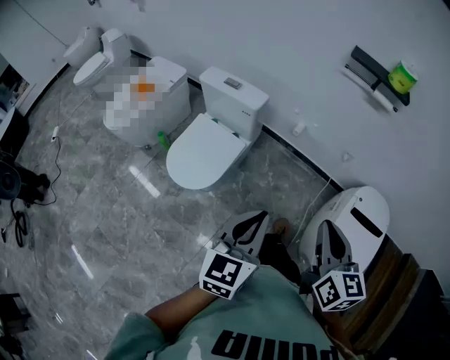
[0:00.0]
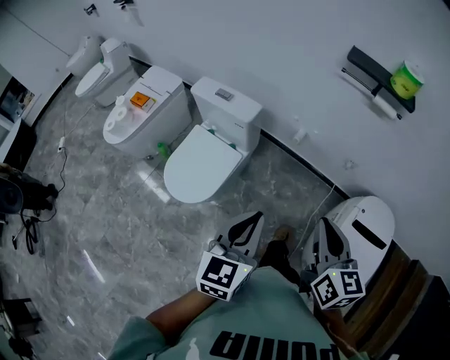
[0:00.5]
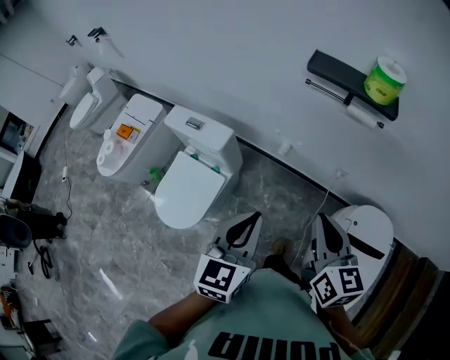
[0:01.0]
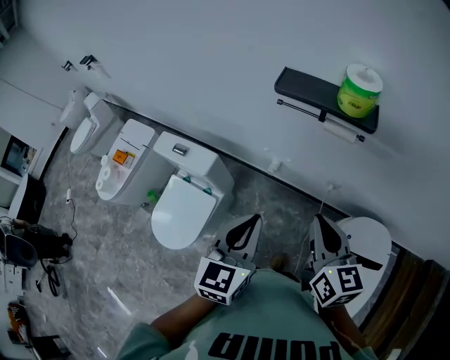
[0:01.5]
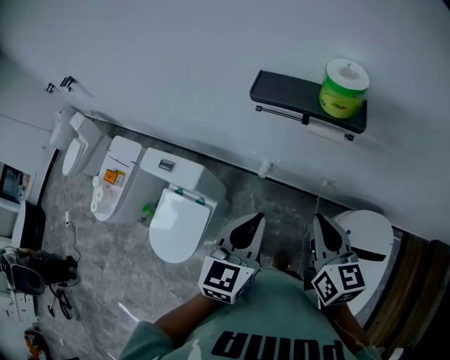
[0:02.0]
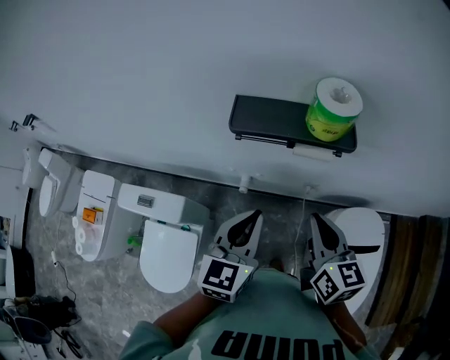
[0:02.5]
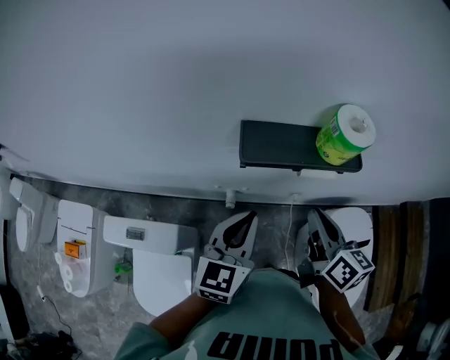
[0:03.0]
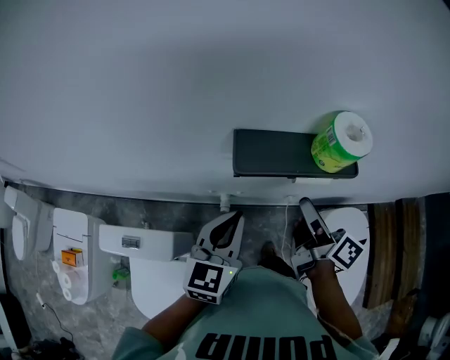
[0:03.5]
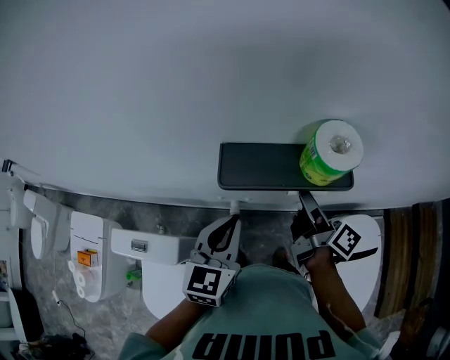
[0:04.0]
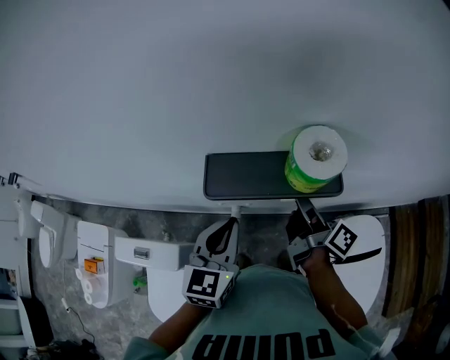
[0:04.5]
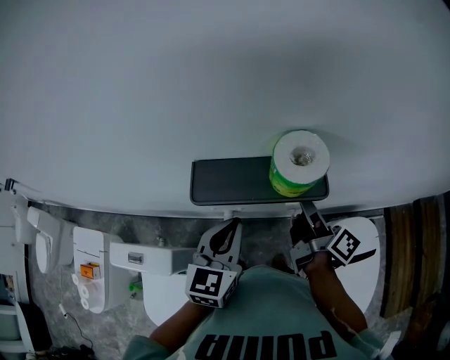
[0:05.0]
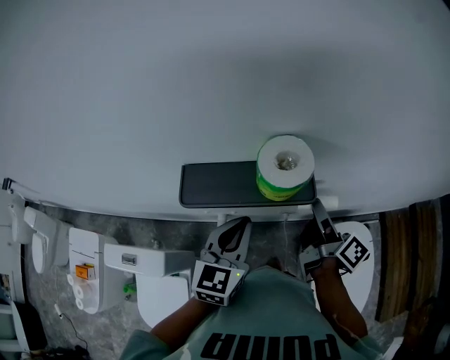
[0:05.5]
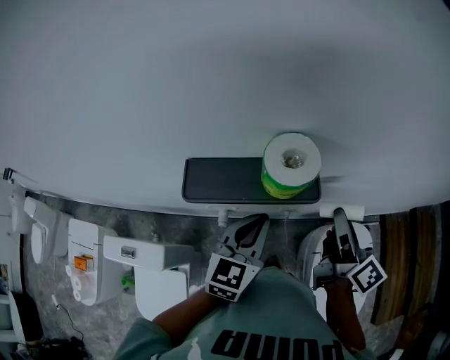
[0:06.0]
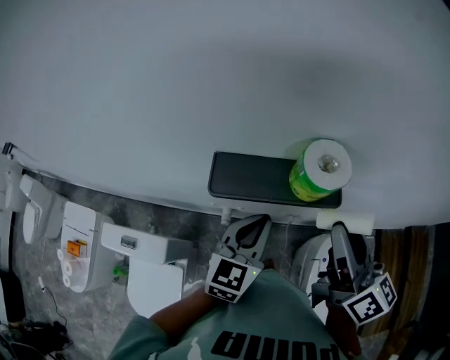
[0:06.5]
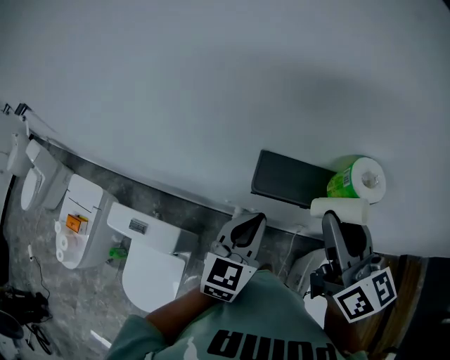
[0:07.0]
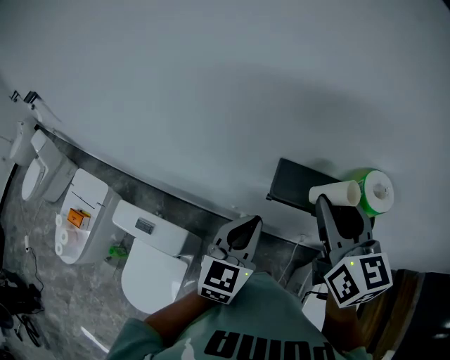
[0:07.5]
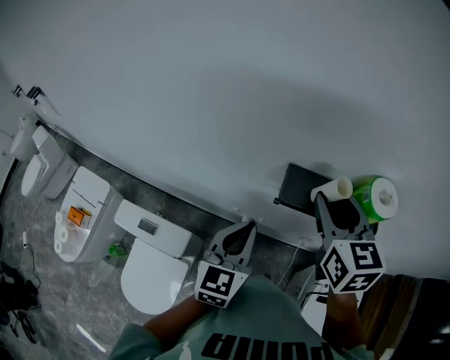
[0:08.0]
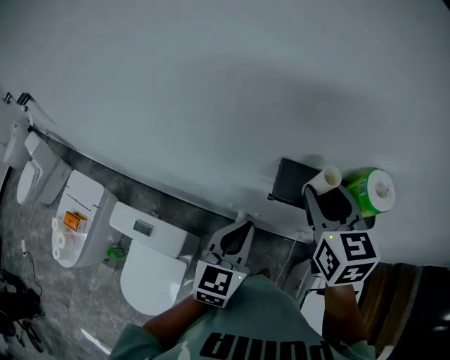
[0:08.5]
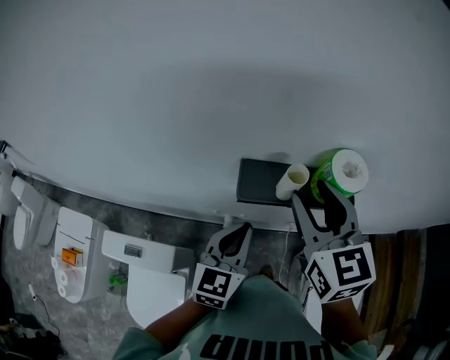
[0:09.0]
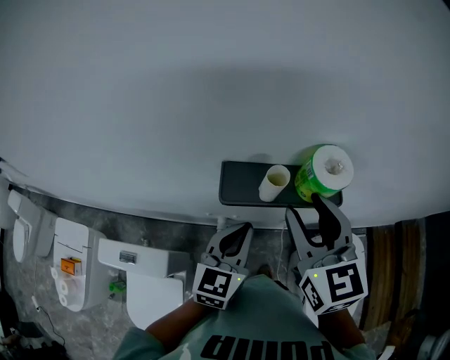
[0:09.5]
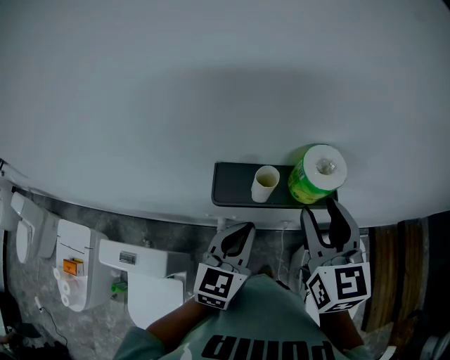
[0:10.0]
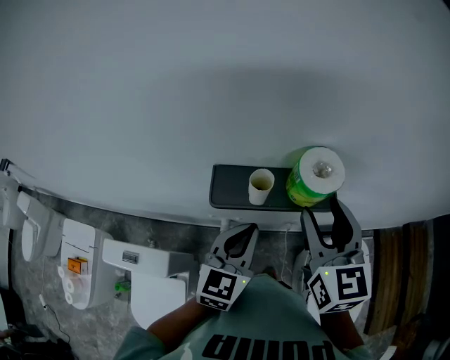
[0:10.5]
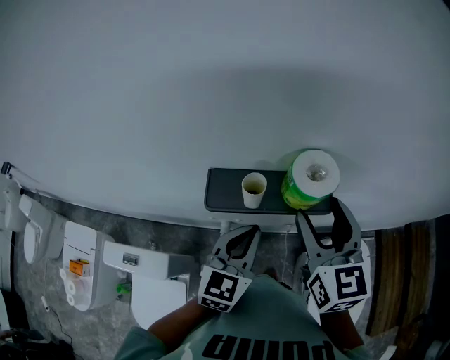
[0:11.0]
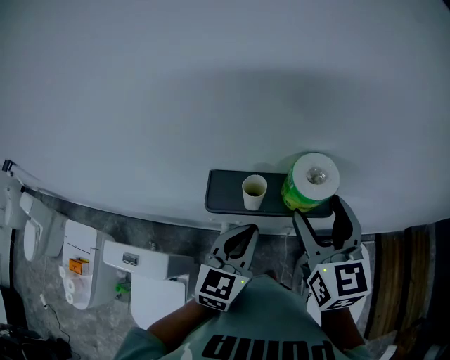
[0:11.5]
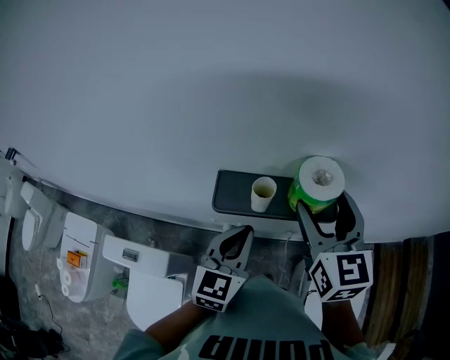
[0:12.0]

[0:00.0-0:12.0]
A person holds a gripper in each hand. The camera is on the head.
0:00.0 to 0:02.0: Both grippers travel together forward and to the right, about 35 cm.
0:02.0 to 0:04.0: The two grippers go approximately 20 cm forward. The right gripper twists roughly 50 degrees clockwise, seen from behind, and opens its fingers.
0:04.0 to 0:06.0: The left gripper moves to the right, approximately 15 cm, while the right gripper goes approximately 15 cm to the right and upward, and rotates about 20 degrees.
0:06.0 to 0:08.0: Both grippers travel together to the left, approximately 25 cm. The right gripper rotates around the line of its fingers by about 60 degrees, counterclockwise from behind, while the left gripper rotates approximately 20 degrees.
0:08.0 to 0:10.0: The two grippers go roughly 10 cm to the right.
0:10.0 to 0:12.0: The grippers stay close to where they were, moving slightly.

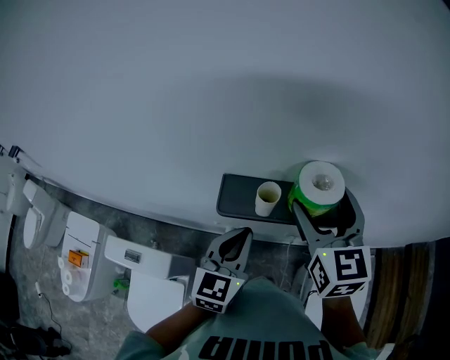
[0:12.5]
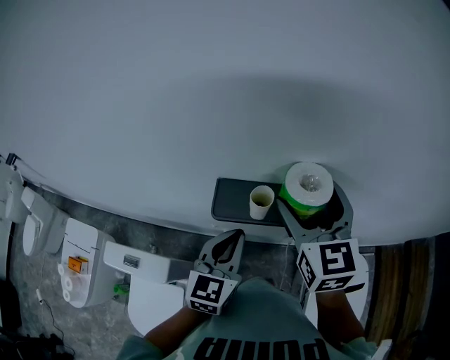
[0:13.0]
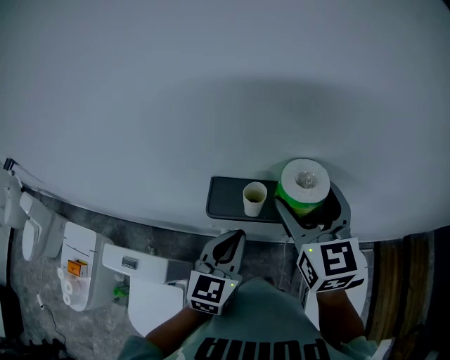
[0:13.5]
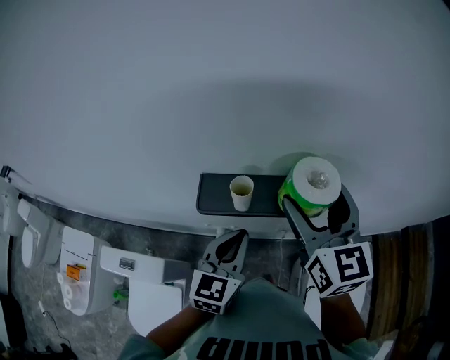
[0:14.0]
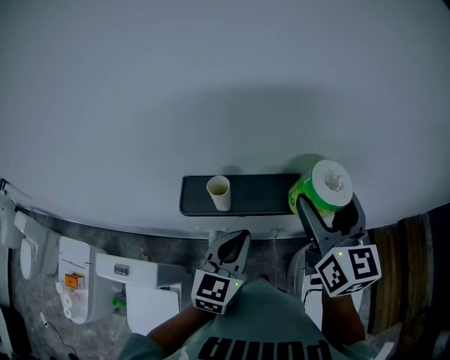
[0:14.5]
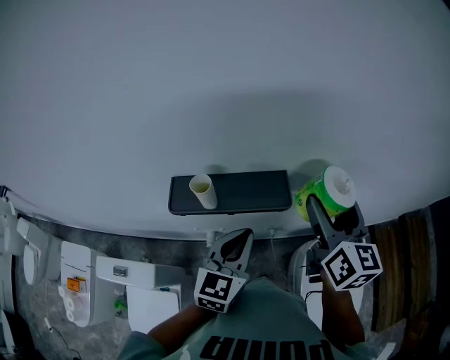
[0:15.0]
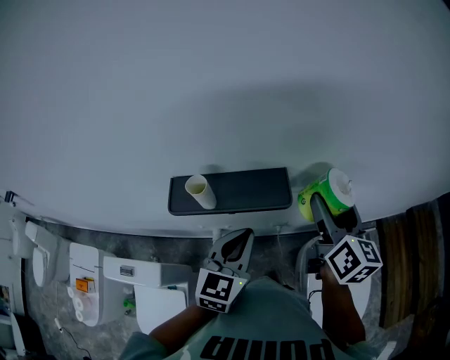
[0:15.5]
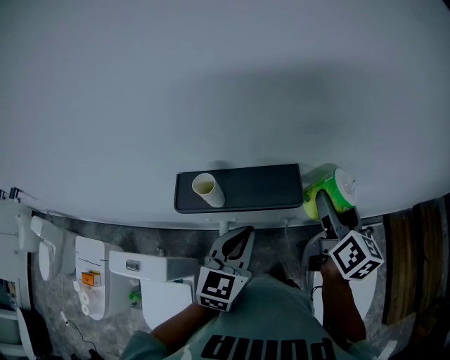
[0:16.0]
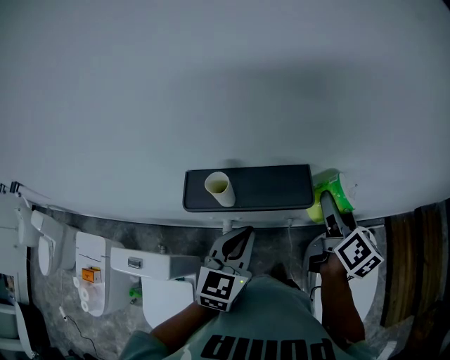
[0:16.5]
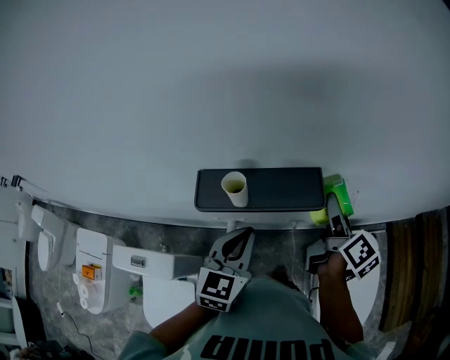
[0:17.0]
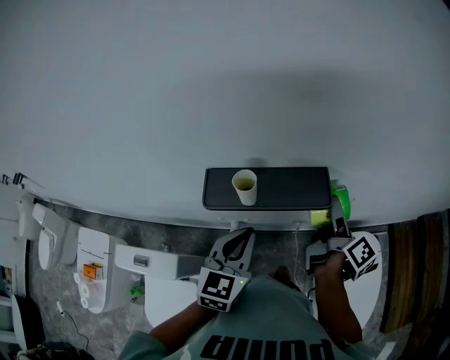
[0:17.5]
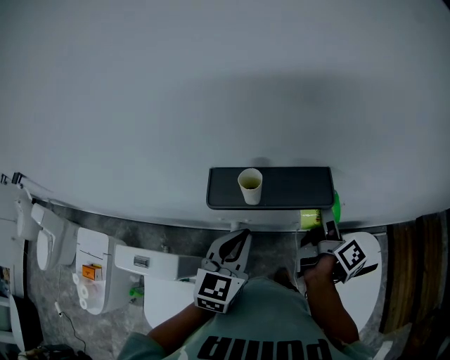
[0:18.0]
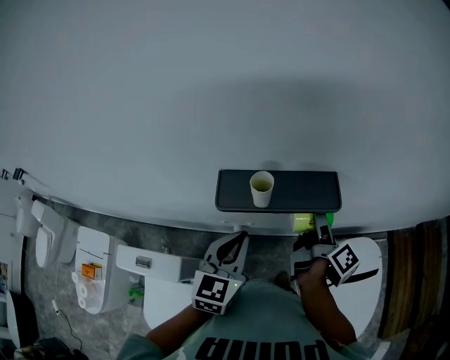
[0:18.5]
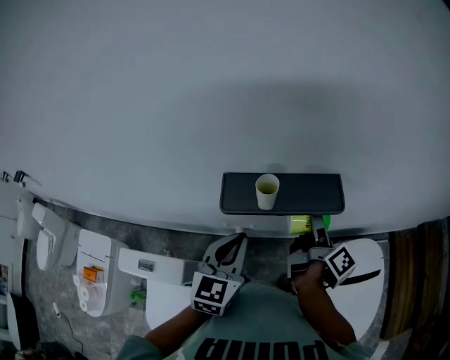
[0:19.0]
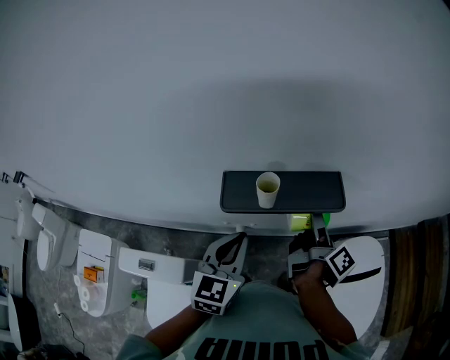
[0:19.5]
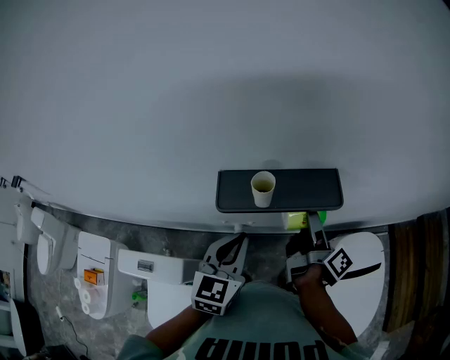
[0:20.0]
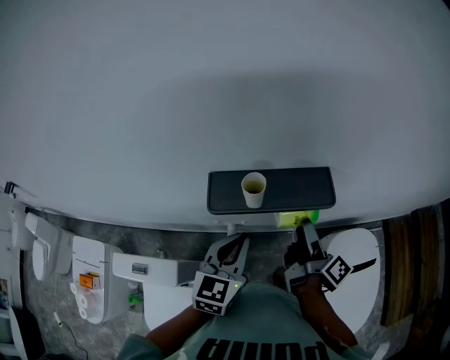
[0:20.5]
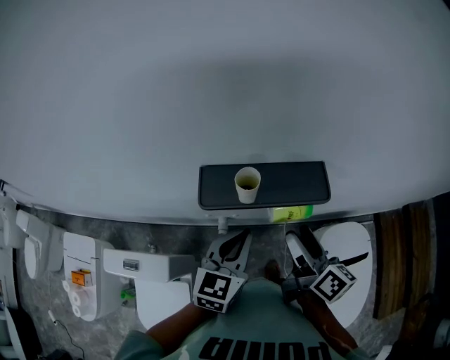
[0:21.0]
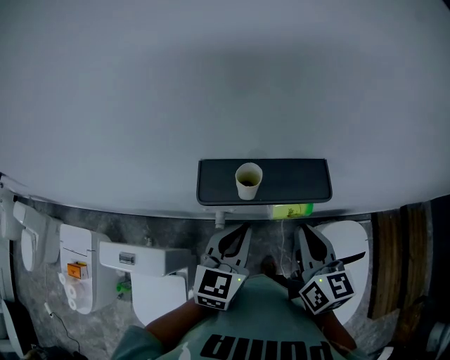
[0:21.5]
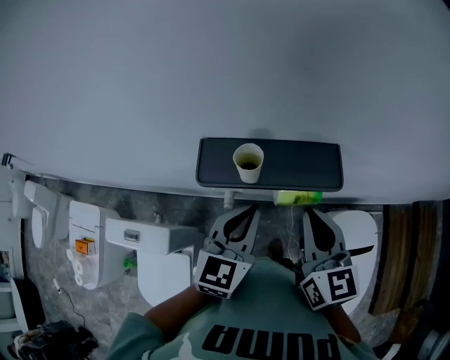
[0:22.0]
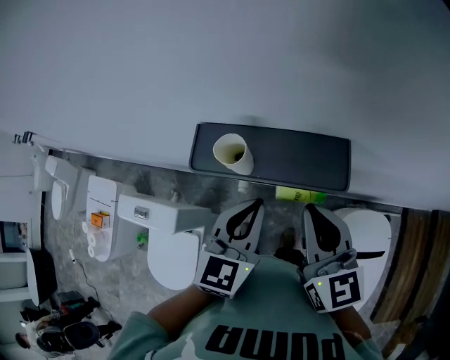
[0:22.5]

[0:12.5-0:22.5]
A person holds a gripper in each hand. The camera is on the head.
0:12.5 to 0:14.5: Both grippers move to the right, about 10 cm.
0:14.5 to 0:16.5: The right gripper goes approximately 15 cm downward and to the right, and swivels some 40 degrees.
0:16.5 to 0:18.5: The left gripper shifts about 10 cm to the left. The right gripper is displaced to the left and downward by about 10 cm, and swivels about 40 degrees.
0:18.5 to 0:20.5: There are only small adjustments of the grippers.
0:20.5 to 0:22.5: The right gripper travels upward by roughly 10 cm, rolls counterclockwise, seen from behind, by approximately 80 degrees, and closes its fingers. Meanwhile the left gripper heads to the right, covering about 5 cm.

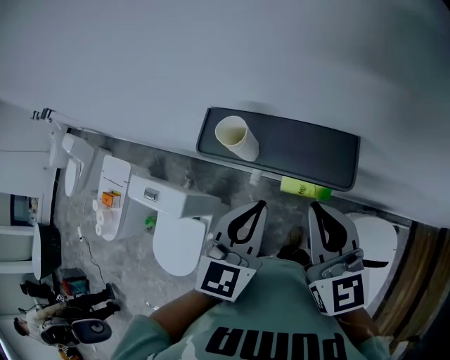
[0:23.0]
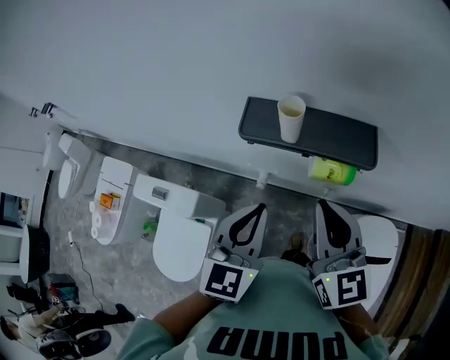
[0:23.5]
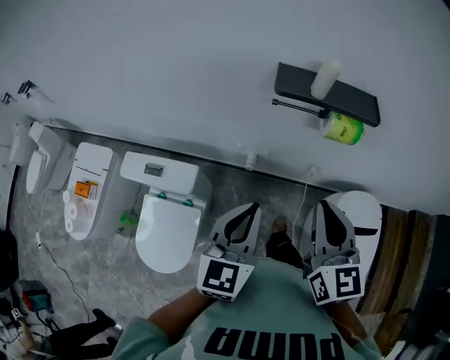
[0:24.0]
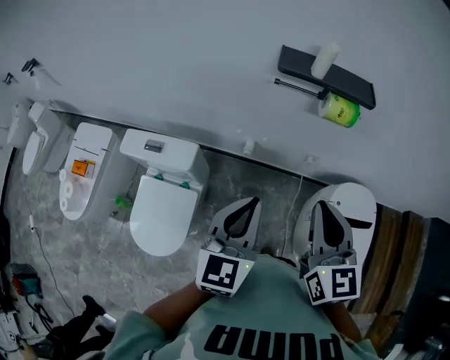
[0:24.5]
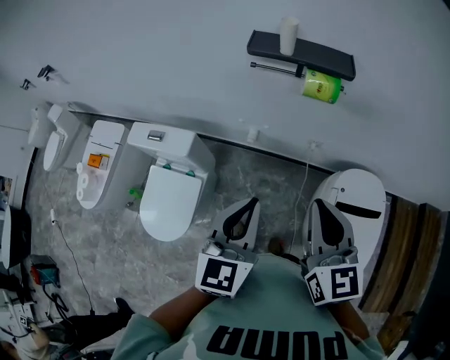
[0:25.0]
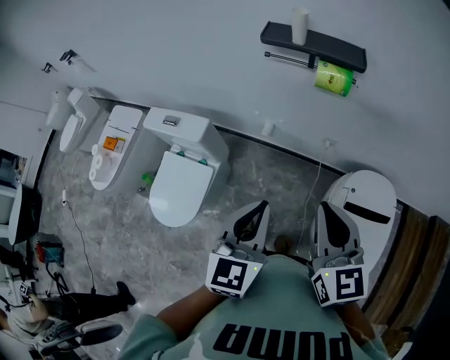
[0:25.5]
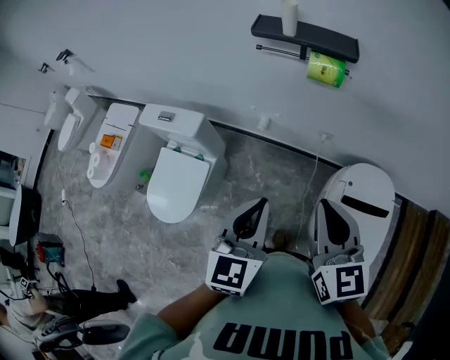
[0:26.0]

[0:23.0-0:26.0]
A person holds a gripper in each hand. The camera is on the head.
0:23.0 to 0:24.5: Both grippers move backward and to the left, about 25 cm.
0:24.5 to 0:26.0: Both grippers move to the right and backward, some 15 cm.

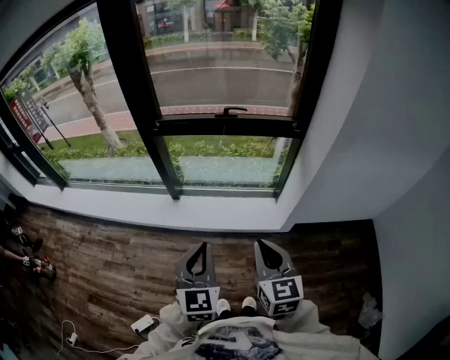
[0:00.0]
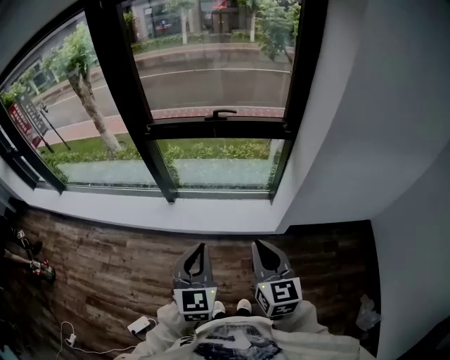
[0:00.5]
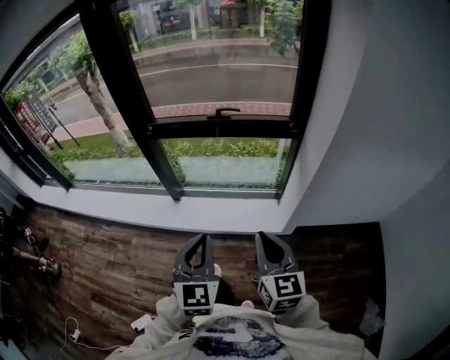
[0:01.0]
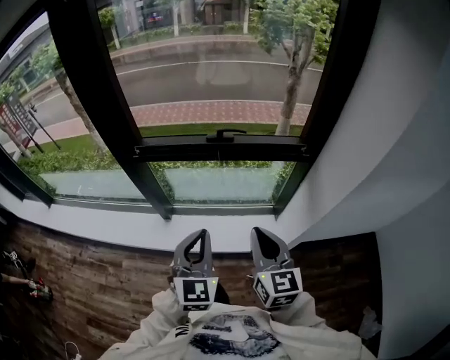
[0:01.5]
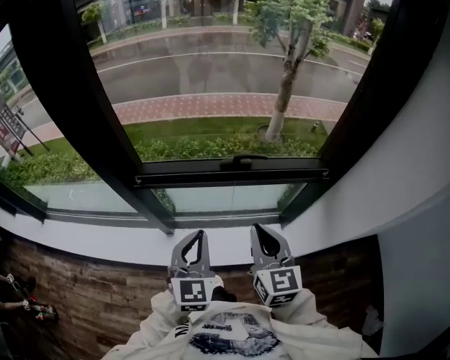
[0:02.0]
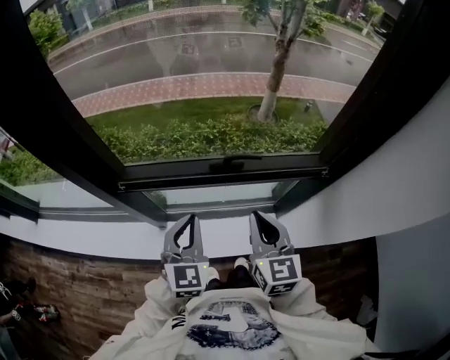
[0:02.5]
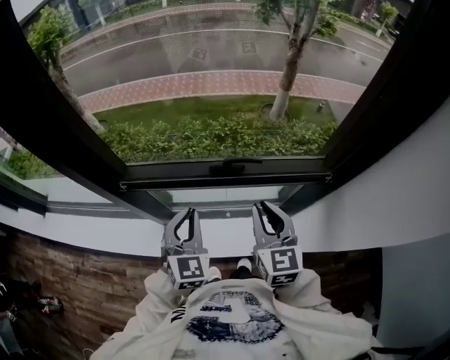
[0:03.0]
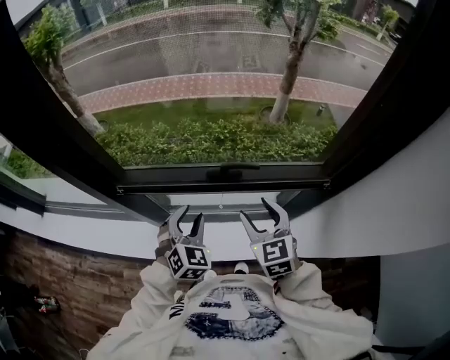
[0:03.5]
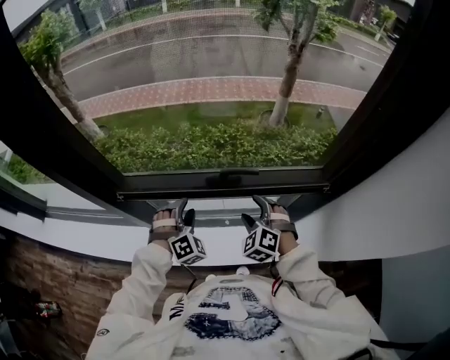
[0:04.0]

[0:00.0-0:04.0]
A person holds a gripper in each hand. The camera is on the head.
0:00.0 to 0:02.0: The pair of grippers is taken forward, approximately 40 cm.
0:02.0 to 0:04.0: The left gripper is displaced forward and downward by about 25 cm, rotates around the line of its fingers by some 50 degrees, clockwise from behind, and opens, while the right gripper travels downward and forward by approximately 25 cm, rolls counterclockwise, seen from behind, by about 50 degrees, and opens.